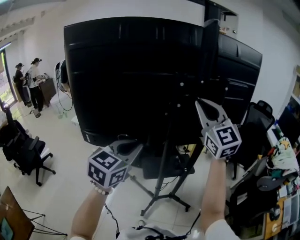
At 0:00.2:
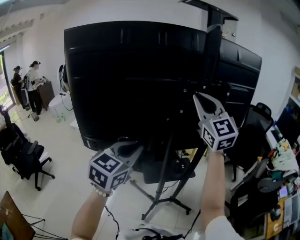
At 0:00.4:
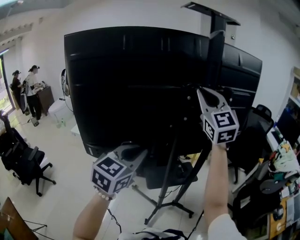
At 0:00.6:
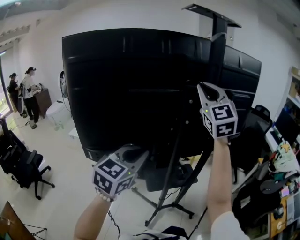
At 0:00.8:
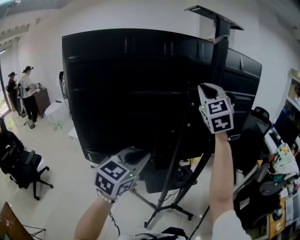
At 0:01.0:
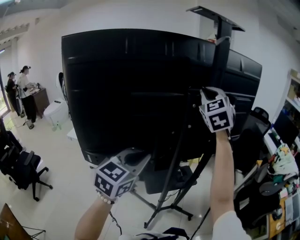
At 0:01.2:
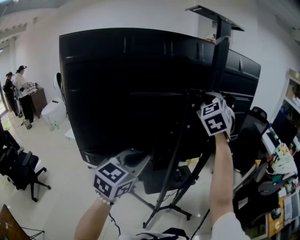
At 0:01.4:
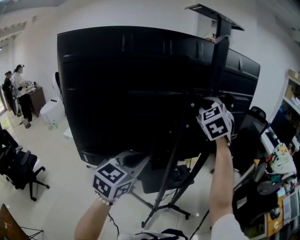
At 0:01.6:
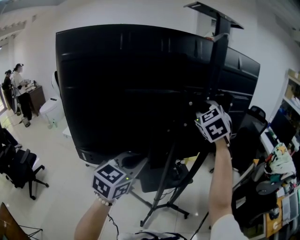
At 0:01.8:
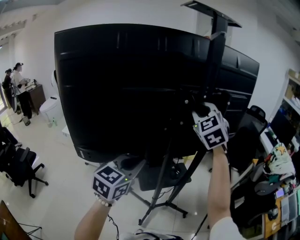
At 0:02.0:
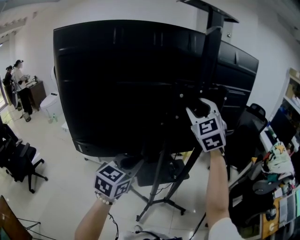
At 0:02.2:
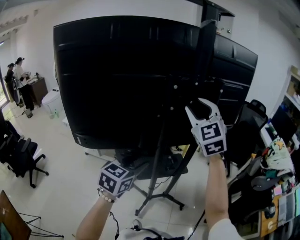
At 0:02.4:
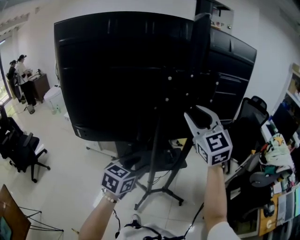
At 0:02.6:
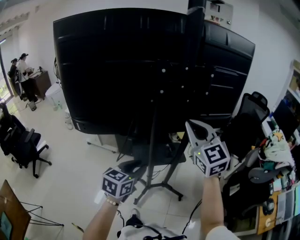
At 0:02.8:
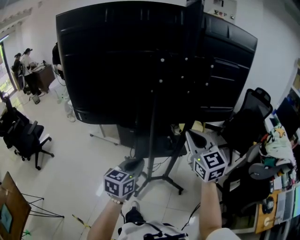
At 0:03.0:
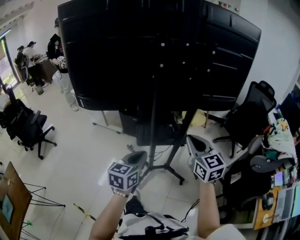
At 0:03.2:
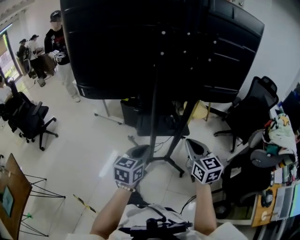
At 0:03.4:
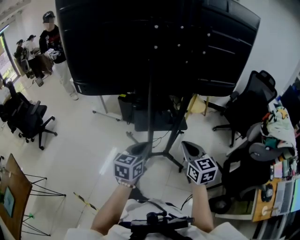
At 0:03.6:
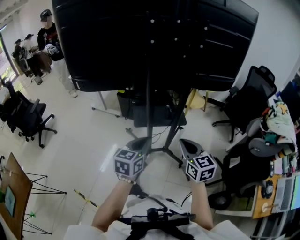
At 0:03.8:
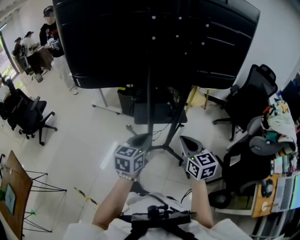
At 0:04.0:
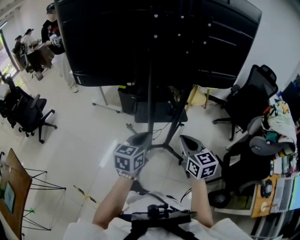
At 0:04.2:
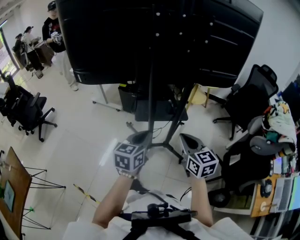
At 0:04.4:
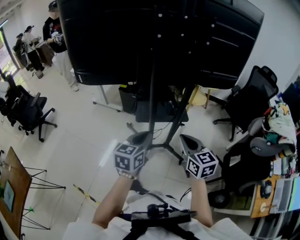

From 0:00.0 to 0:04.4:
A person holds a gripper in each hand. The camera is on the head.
From 0:00.0 to 0:01.4: The right gripper shifts roughly 10 cm forward, and turns by about 40 degrees. Meanwhile the left gripper changes place by approximately 5 cm.
From 0:01.4 to 0:03.0: The right gripper shifts roughly 40 cm downward, backward and to the right, turns by approximately 50 degrees, and opens and closes again. Meanwhile the left gripper moves downward, to the right and backward, about 30 cm, swivels some 30 degrees, and opens, then closes once more.
From 0:03.0 to 0:04.4: The left gripper changes place by roughly 5 cm. The right gripper moves downward and backward, roughly 10 cm.

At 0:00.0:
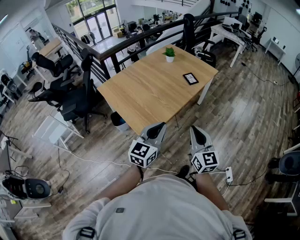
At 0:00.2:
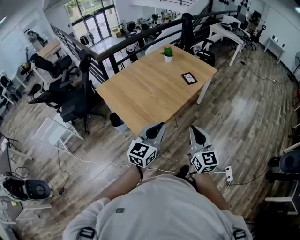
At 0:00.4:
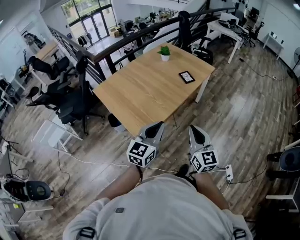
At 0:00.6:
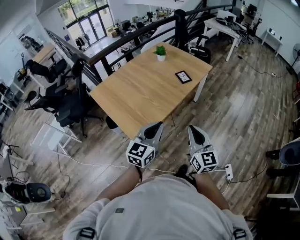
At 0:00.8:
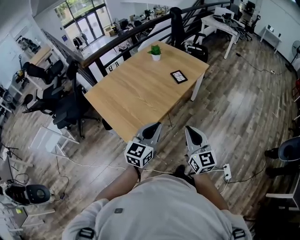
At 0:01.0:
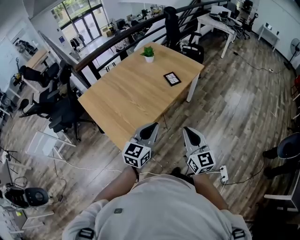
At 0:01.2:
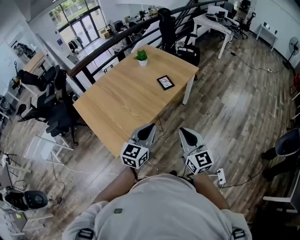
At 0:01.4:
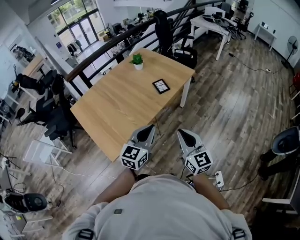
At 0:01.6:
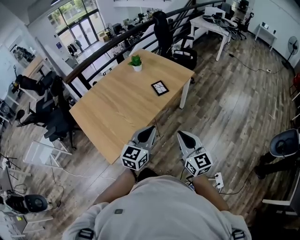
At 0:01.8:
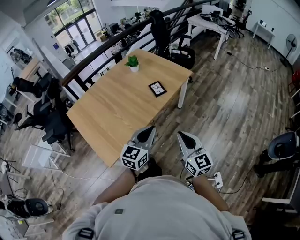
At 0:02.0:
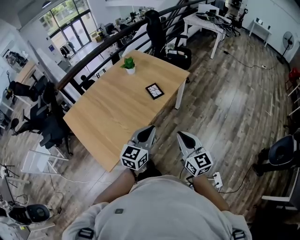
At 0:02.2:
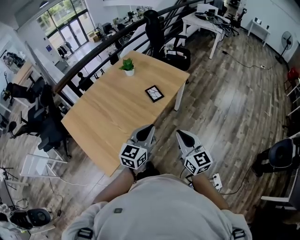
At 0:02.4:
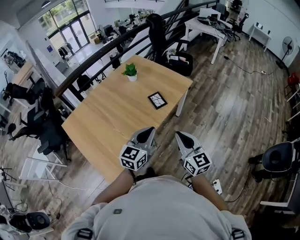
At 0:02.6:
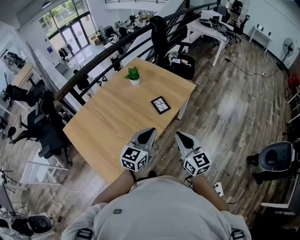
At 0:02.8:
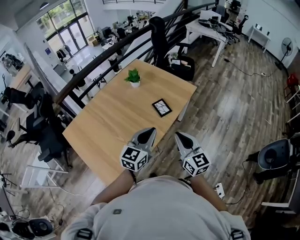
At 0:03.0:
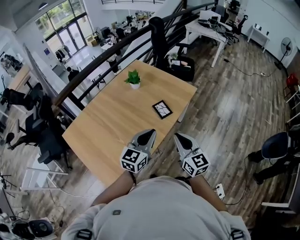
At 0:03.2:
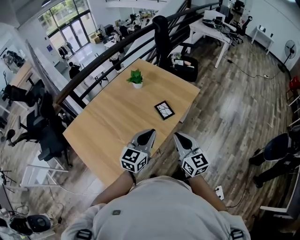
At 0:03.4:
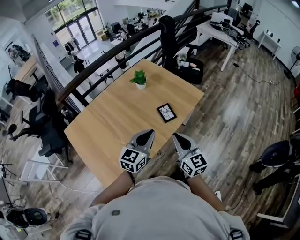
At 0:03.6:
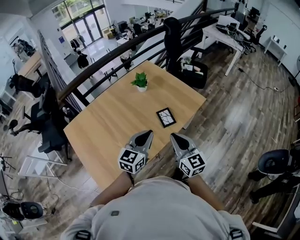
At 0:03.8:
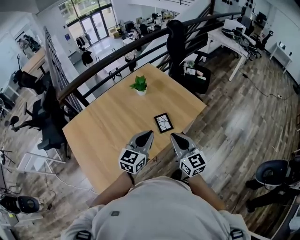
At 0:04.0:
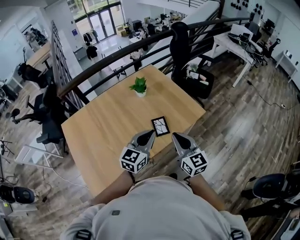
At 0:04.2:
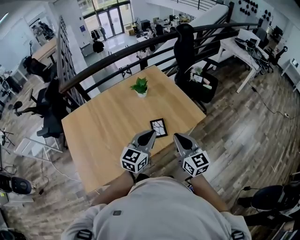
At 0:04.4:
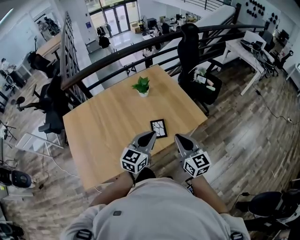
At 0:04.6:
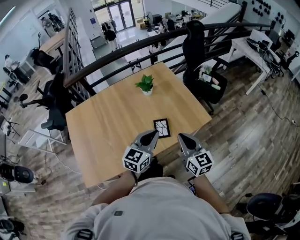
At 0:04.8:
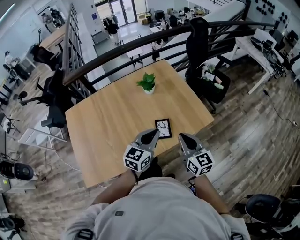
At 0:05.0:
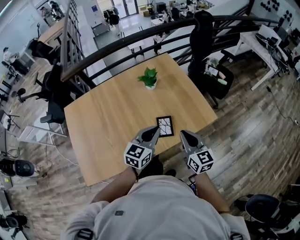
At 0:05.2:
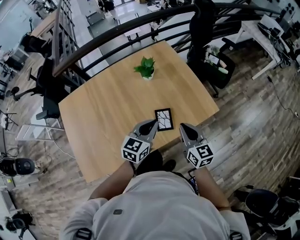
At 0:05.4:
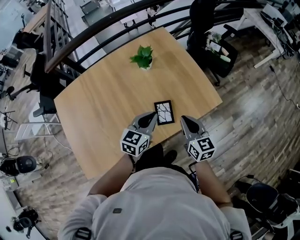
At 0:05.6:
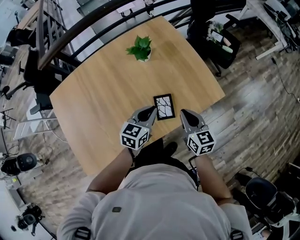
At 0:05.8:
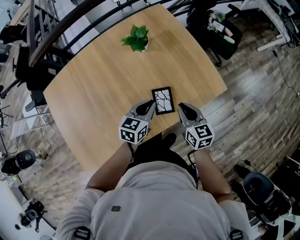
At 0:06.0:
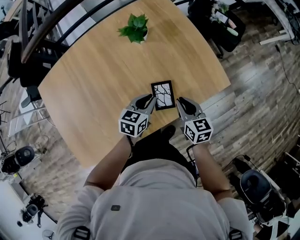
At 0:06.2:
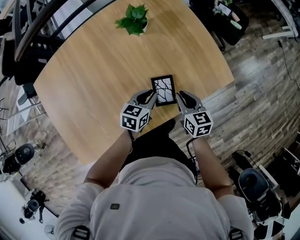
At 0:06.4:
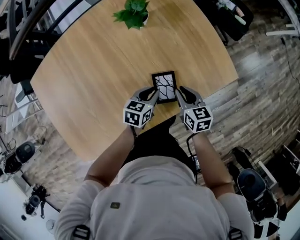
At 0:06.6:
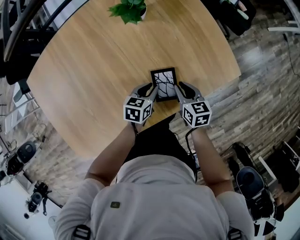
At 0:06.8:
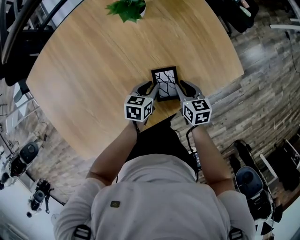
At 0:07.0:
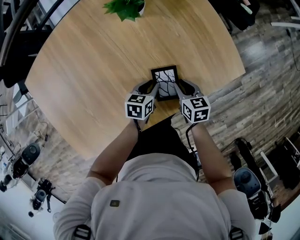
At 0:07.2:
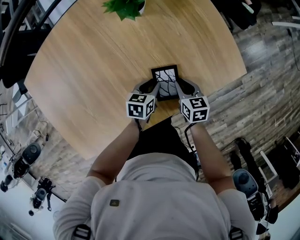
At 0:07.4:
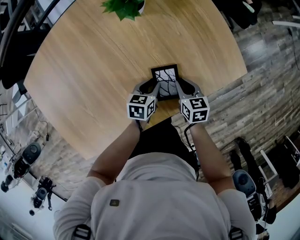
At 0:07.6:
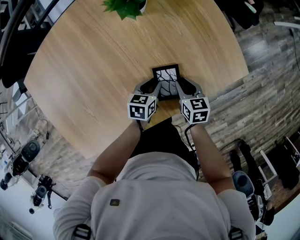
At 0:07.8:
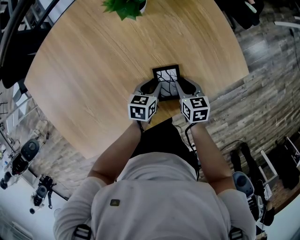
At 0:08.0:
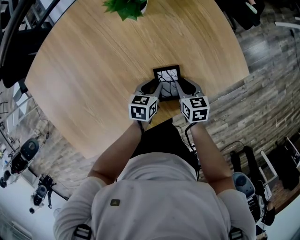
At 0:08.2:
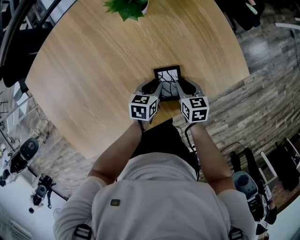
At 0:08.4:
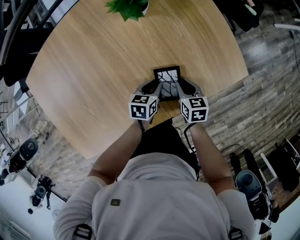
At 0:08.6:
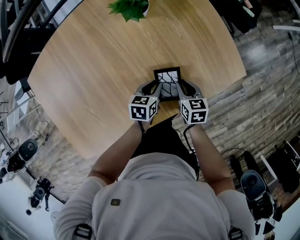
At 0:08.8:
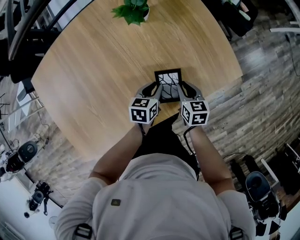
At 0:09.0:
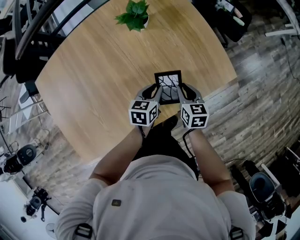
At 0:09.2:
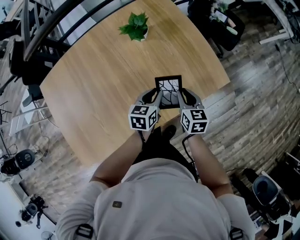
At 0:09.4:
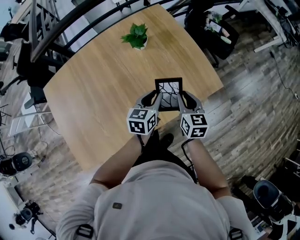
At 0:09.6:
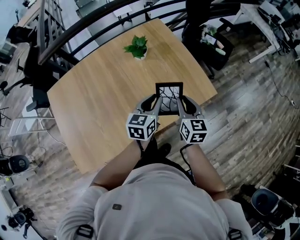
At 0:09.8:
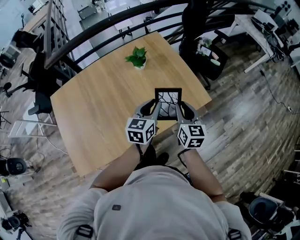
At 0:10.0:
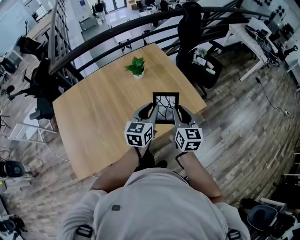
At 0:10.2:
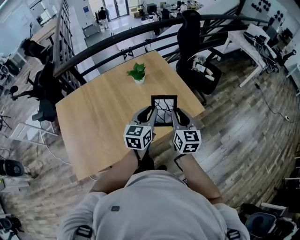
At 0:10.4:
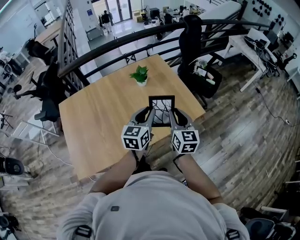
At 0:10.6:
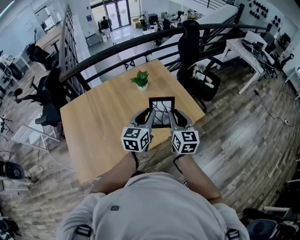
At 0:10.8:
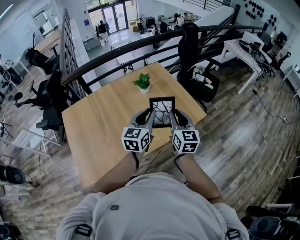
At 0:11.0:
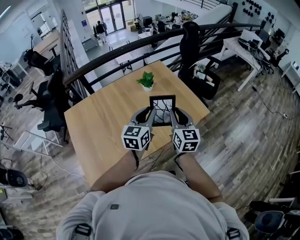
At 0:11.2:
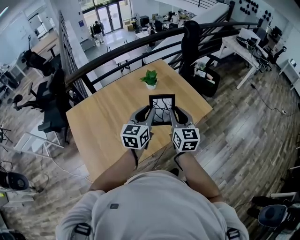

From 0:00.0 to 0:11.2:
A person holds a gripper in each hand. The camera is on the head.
From 0:00.0 to 0:01.6: Both grippers travel together to the right and forward, approximately 30 cm.
From 0:01.6 to 0:03.2: The left gripper shifts approximately 25 cm forward, while the right gripper travels forward and to the left by approximately 25 cm.
From 0:03.2 to 0:04.8: The grippers both shift forward and to the right by about 25 cm. The left gripper changes its angle by some 20 degrees. Meanwhile the right gripper changes its angle by approximately 20 degrees.
From 0:04.8 to 0:06.4: The left gripper is displaced downward by some 35 cm, and turns by about 40 degrees. Meanwhile the right gripper goes about 35 cm downward and forward, and rotates some 30 degrees.
From 0:06.4 to 0:08.0: Both grippers travel together downward, about 10 cm.
From 0:08.0 to 0:09.6: Both grippers move upward, roughly 30 cm. The right gripper rotates approximately 30 degrees; the left gripper turns by some 30 degrees.
From 0:09.6 to 0:11.2: The grippers both shift upward, backward and to the left by approximately 25 cm.

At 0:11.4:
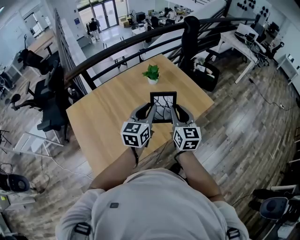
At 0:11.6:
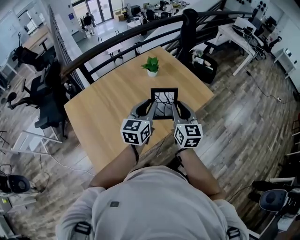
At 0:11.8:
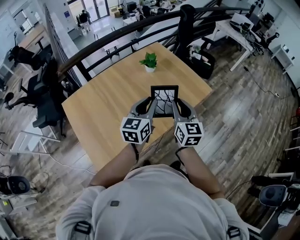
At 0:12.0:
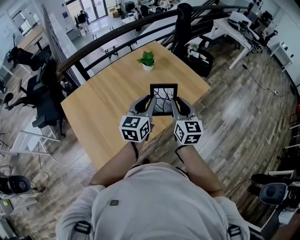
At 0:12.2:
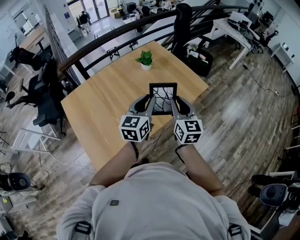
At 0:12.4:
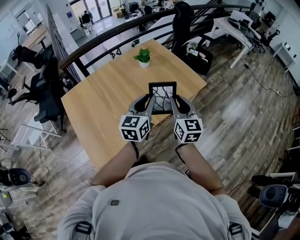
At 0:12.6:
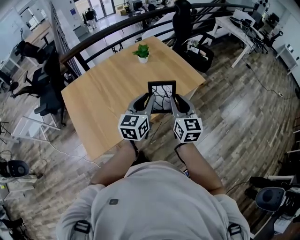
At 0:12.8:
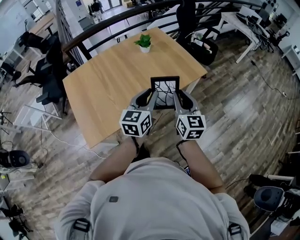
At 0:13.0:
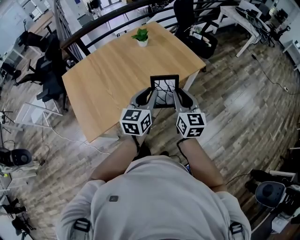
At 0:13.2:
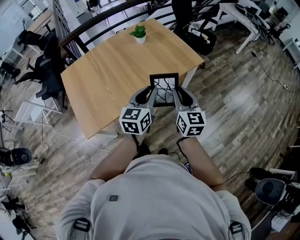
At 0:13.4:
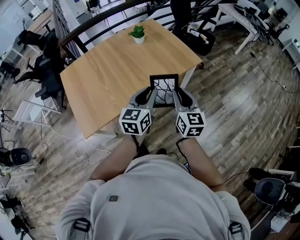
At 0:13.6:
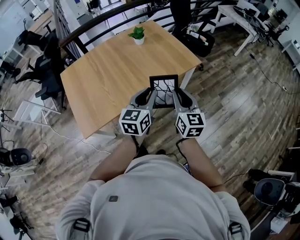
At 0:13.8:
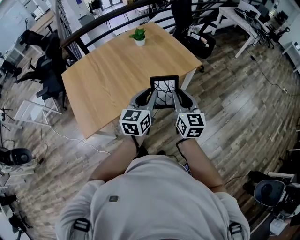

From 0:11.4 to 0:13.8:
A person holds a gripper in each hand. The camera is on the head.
From 0:11.4 to 0:12.6: The grippers both shift backward and to the right by roughly 15 cm.
From 0:12.6 to 0:13.8: Both grippers travel together backward and to the right, roughly 15 cm.

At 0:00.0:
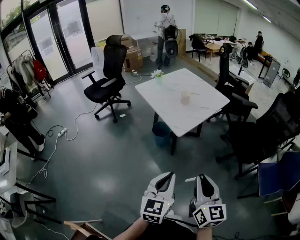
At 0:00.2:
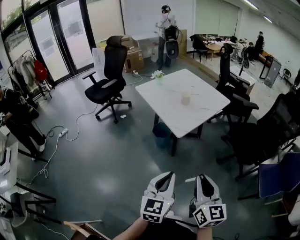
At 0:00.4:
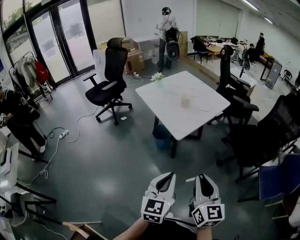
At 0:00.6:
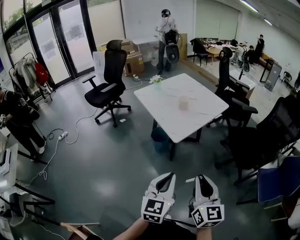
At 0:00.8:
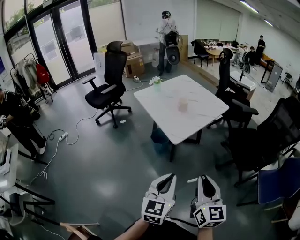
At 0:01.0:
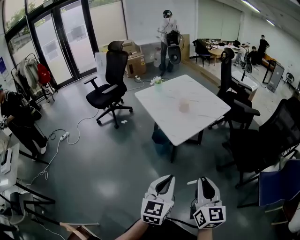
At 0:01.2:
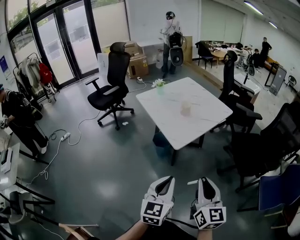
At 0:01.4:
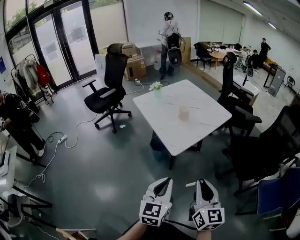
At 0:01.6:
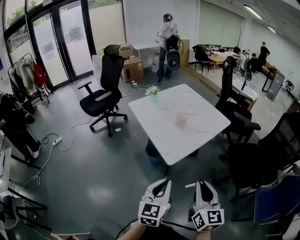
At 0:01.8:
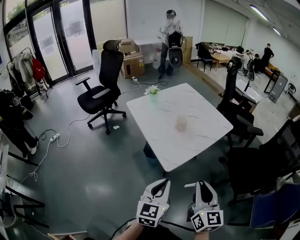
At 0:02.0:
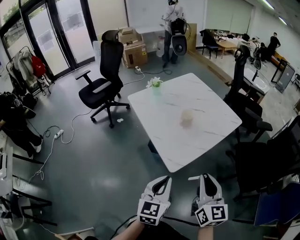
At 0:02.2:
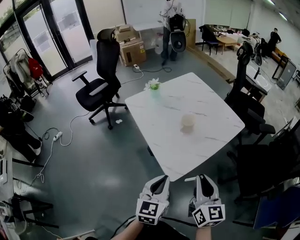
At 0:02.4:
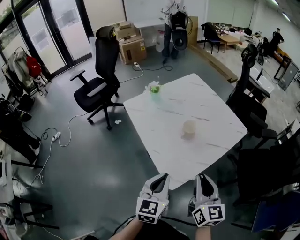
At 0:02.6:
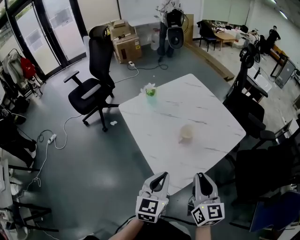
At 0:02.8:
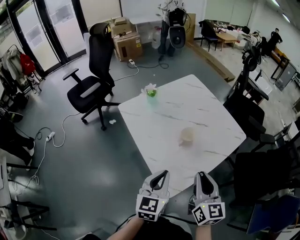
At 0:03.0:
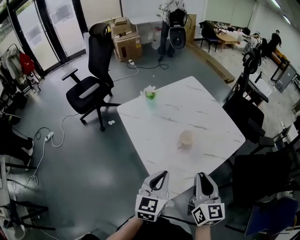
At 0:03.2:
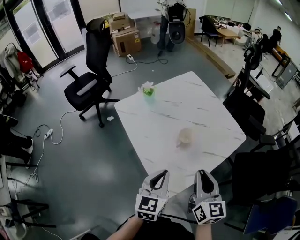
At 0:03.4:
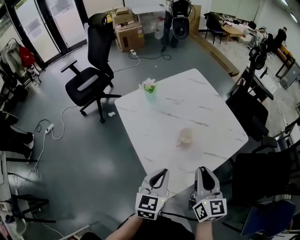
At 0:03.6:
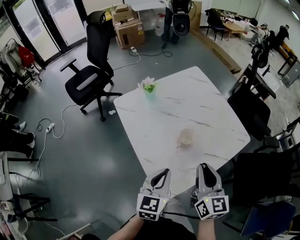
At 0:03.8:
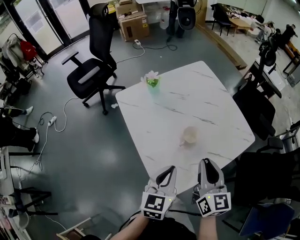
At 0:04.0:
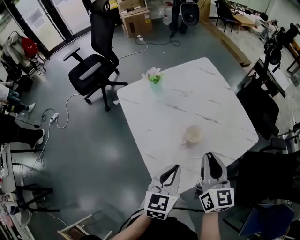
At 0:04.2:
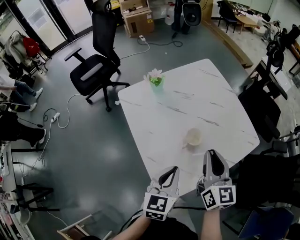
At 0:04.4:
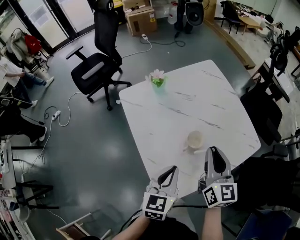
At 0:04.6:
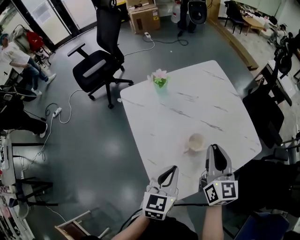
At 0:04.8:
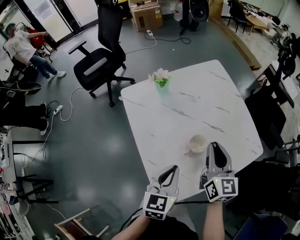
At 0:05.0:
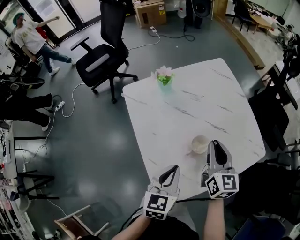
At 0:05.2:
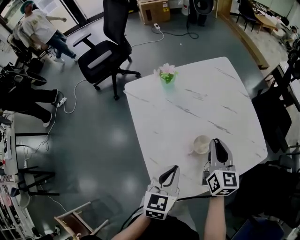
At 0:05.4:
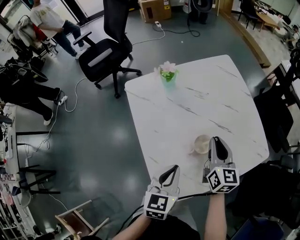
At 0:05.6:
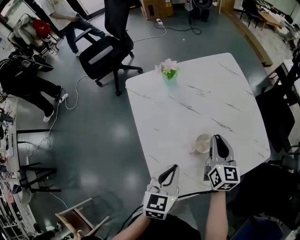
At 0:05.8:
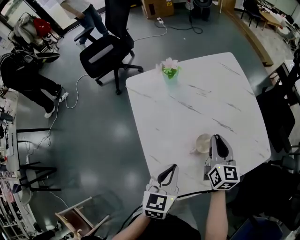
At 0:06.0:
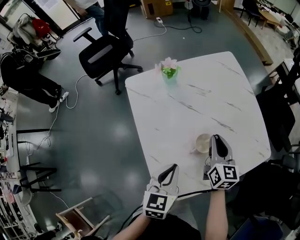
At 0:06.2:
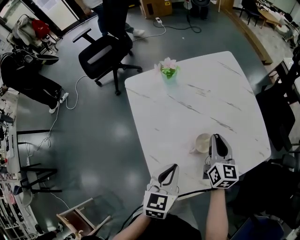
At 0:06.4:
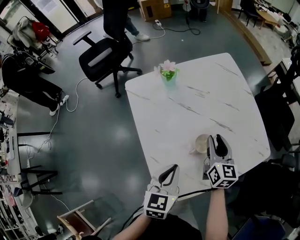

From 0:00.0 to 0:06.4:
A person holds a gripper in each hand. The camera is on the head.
From 0:00.0 to 0:01.6: Both grippers travel together forward, some 15 cm.
From 0:01.6 to 0:03.2: Both grippers travel together forward, roughly 35 cm.
From 0:03.2 to 0:04.8: The right gripper moves forward, some 20 cm; the left gripper moves forward, roughly 10 cm.
From 0:04.8 to 0:06.4: The right gripper moves downward, approximately 10 cm, and opens up.
